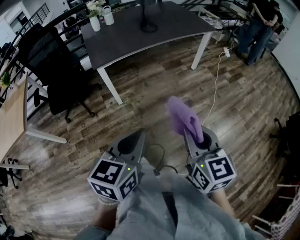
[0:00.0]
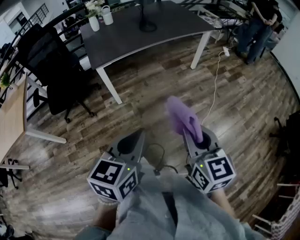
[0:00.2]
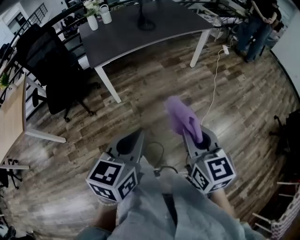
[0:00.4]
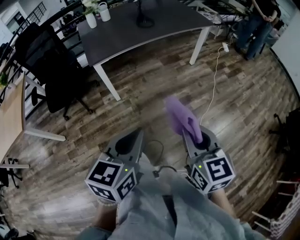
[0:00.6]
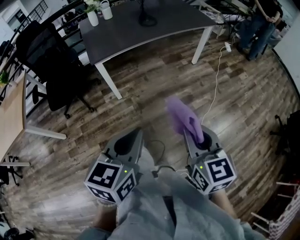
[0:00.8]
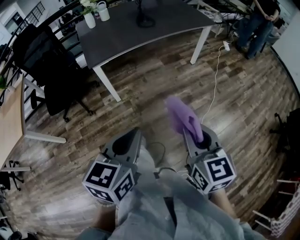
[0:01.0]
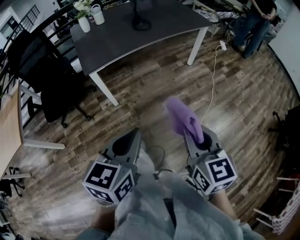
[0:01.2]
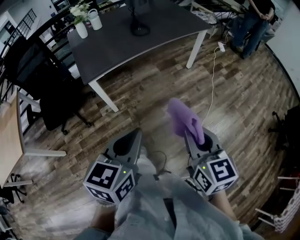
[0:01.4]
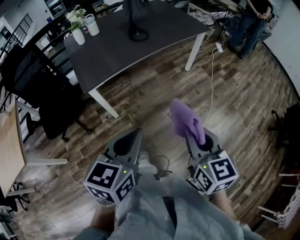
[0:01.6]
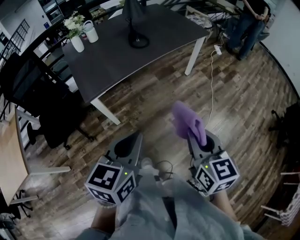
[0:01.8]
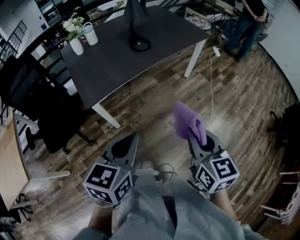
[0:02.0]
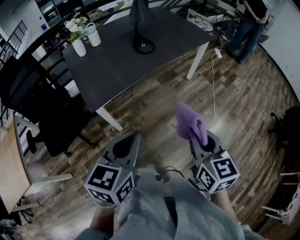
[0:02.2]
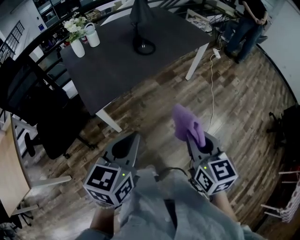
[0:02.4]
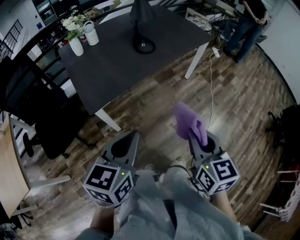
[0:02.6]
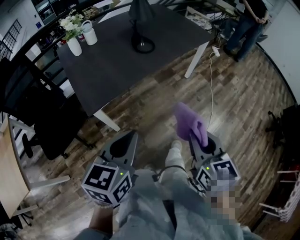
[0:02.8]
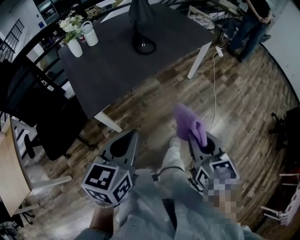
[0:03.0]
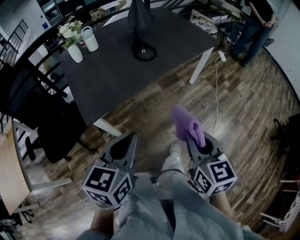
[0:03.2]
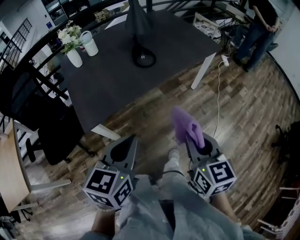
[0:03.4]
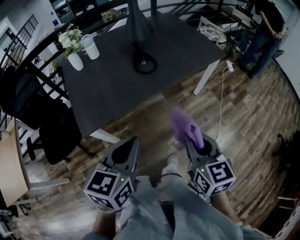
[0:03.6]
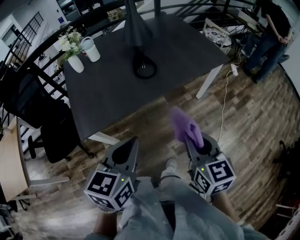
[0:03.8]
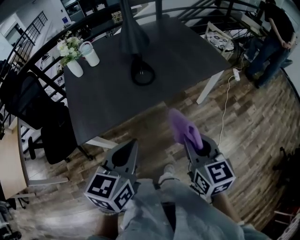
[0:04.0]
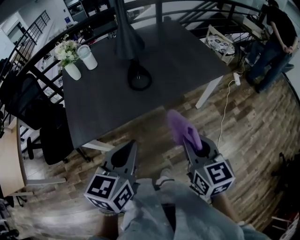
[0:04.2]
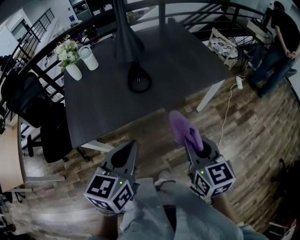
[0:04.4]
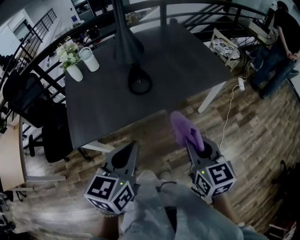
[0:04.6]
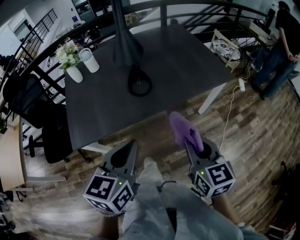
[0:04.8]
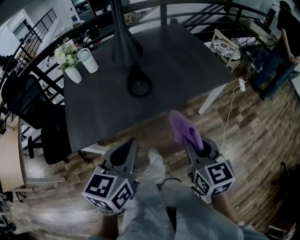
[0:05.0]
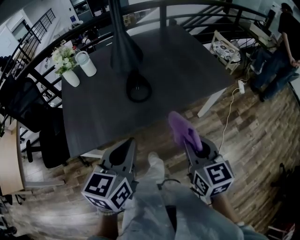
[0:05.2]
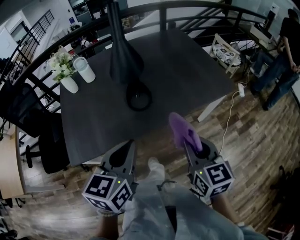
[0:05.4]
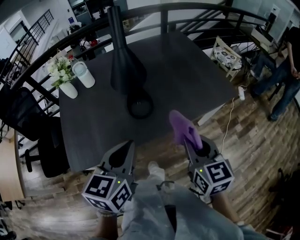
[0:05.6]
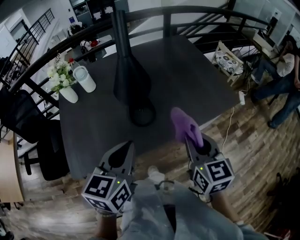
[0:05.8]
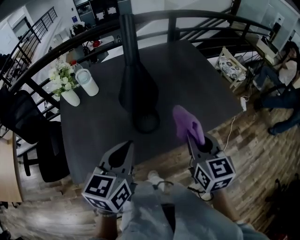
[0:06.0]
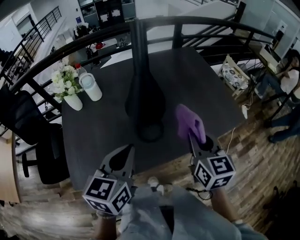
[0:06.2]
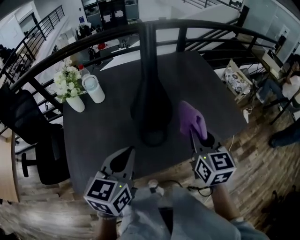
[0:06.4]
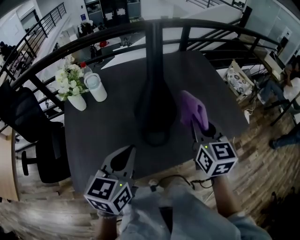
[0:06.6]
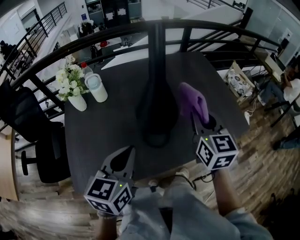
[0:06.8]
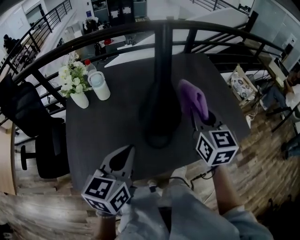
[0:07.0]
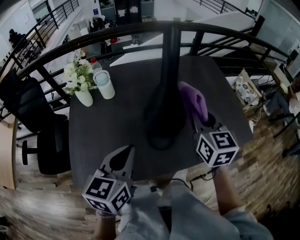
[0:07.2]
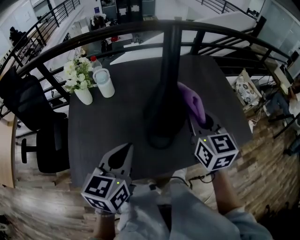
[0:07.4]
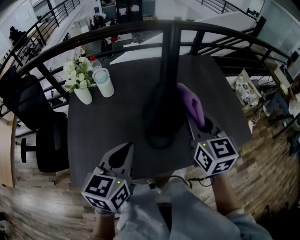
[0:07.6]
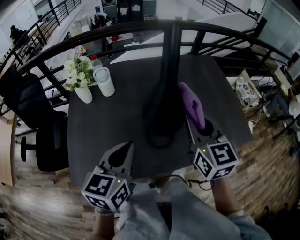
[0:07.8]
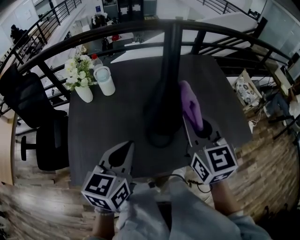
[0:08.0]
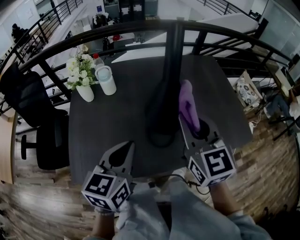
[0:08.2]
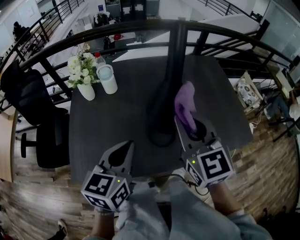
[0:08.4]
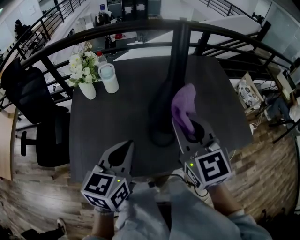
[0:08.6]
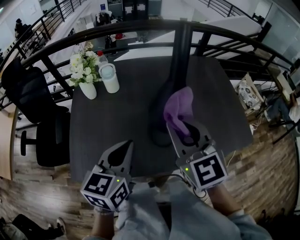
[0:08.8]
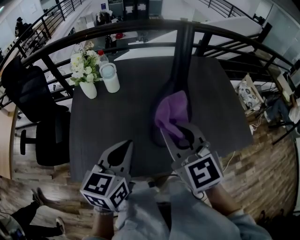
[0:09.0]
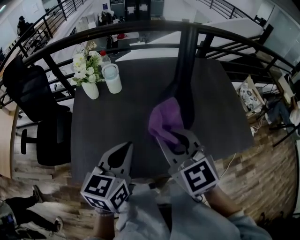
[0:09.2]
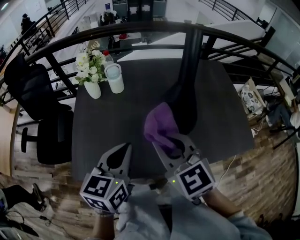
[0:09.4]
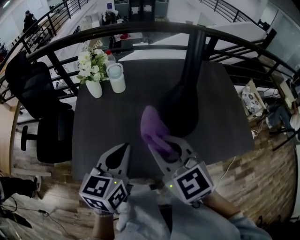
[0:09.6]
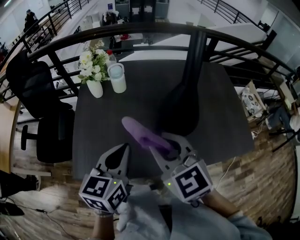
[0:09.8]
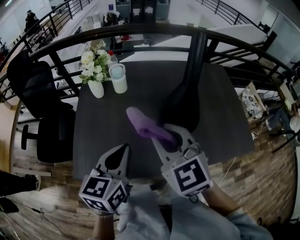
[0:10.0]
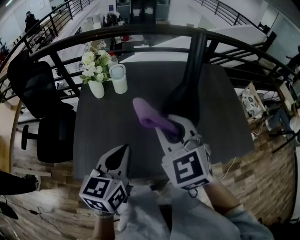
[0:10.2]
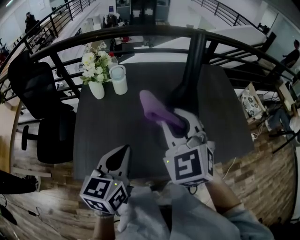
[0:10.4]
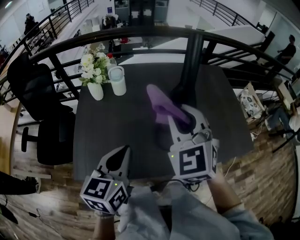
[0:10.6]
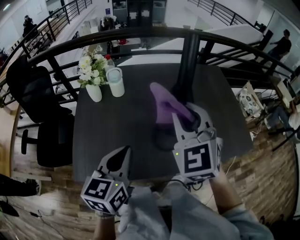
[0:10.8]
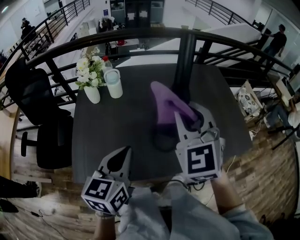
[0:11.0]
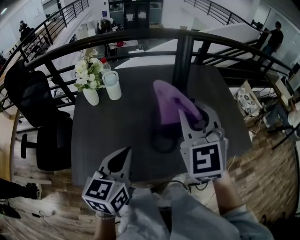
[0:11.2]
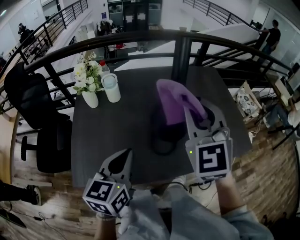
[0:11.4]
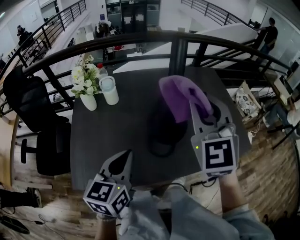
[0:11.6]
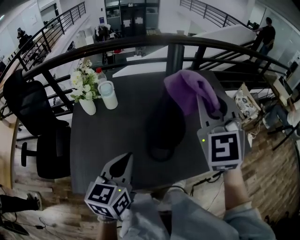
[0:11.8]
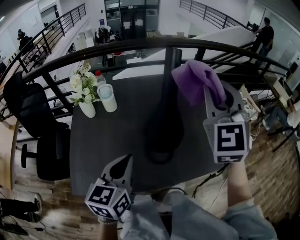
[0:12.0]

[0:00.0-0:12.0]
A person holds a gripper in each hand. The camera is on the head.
0:00.0 to 0:01.6: Both grippers move forward, approximately 15 cm.
0:01.6 to 0:03.0: Both grippers move forward and to the left, some 15 cm.
0:03.0 to 0:04.4: The grippers both shift forward and to the right by about 30 cm.
0:04.4 to 0:06.0: Both grippers move forward, approximately 25 cm.
0:06.0 to 0:07.6: The right gripper heads forward and to the left, covering roughly 15 cm. The left gripper shifts approximately 10 cm to the left and forward.
0:07.6 to 0:09.0: The right gripper moves to the left and backward, approximately 15 cm, and turns by approximately 20 degrees.
0:09.0 to 0:10.4: The right gripper swivels some 20 degrees.
0:10.4 to 0:12.0: The right gripper moves to the right, upward and forward, some 20 cm, and rotates approximately 30 degrees. The left gripper is displaced to the right by roughly 5 cm.

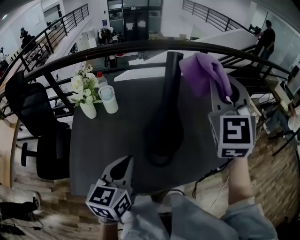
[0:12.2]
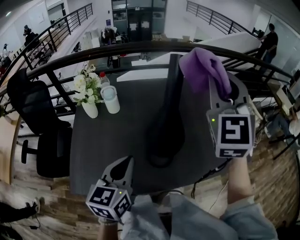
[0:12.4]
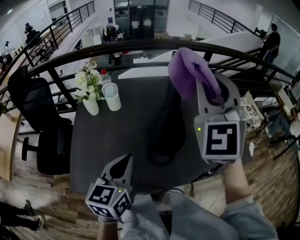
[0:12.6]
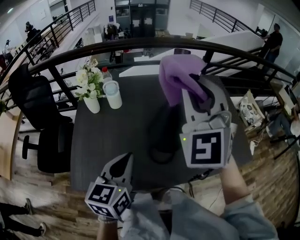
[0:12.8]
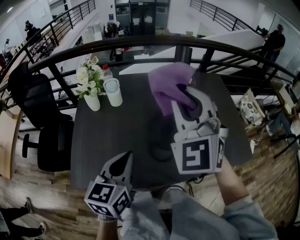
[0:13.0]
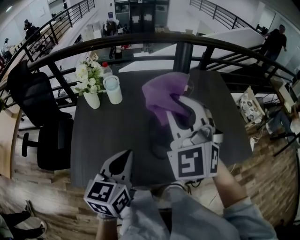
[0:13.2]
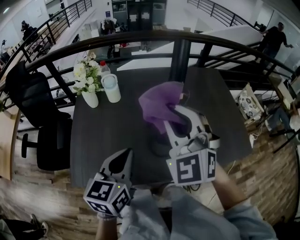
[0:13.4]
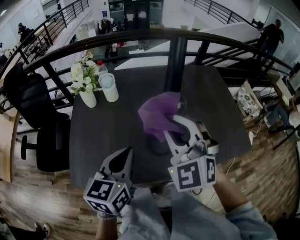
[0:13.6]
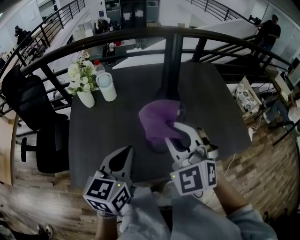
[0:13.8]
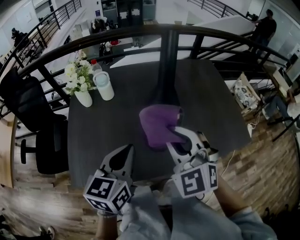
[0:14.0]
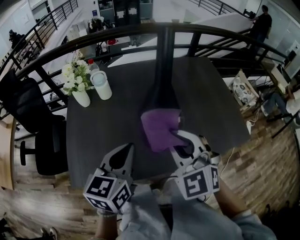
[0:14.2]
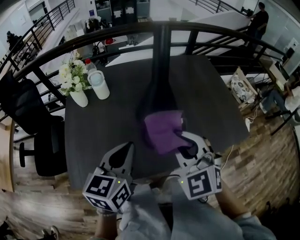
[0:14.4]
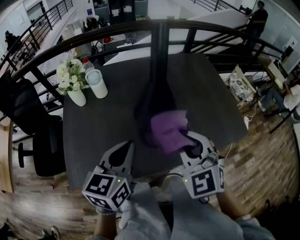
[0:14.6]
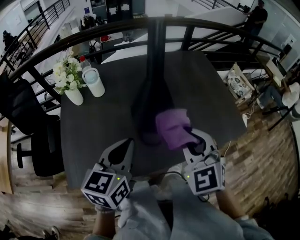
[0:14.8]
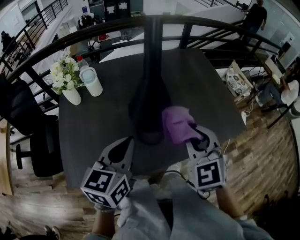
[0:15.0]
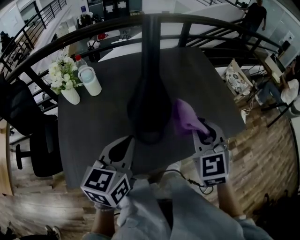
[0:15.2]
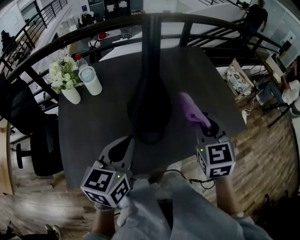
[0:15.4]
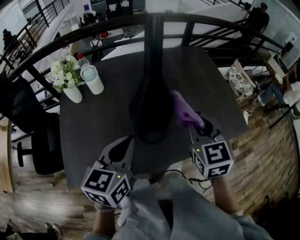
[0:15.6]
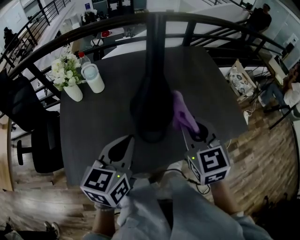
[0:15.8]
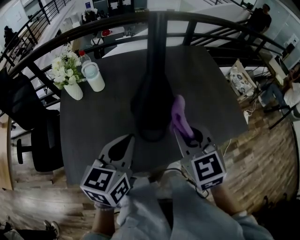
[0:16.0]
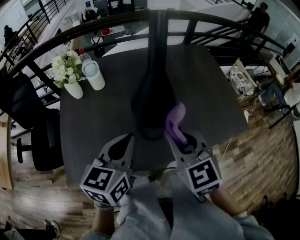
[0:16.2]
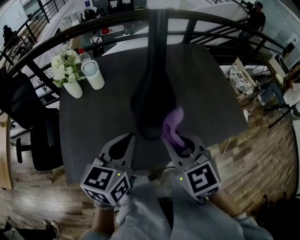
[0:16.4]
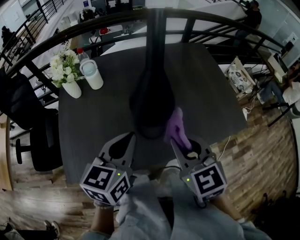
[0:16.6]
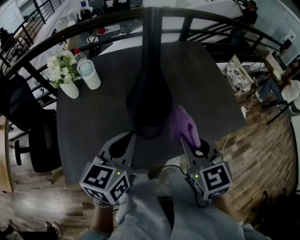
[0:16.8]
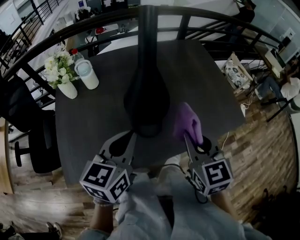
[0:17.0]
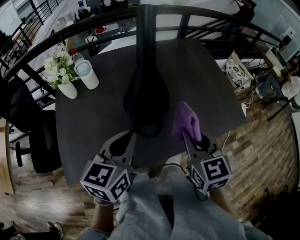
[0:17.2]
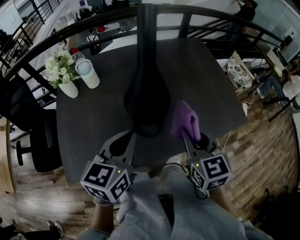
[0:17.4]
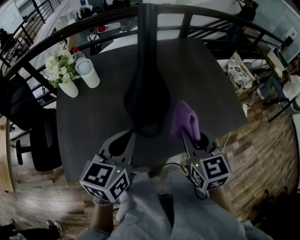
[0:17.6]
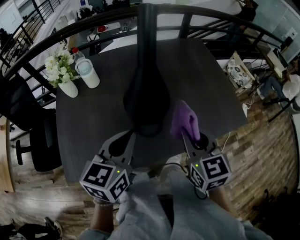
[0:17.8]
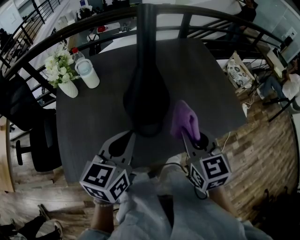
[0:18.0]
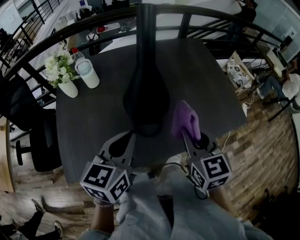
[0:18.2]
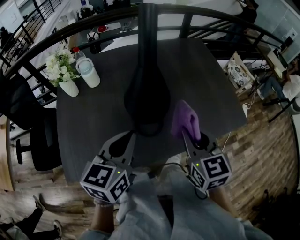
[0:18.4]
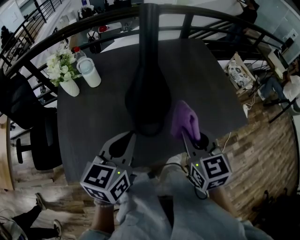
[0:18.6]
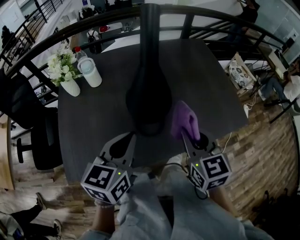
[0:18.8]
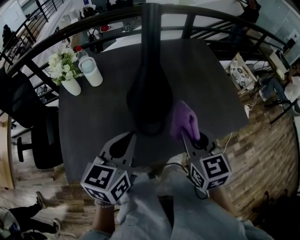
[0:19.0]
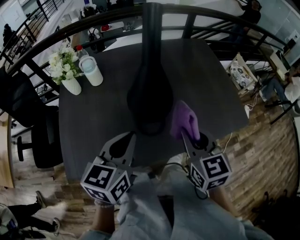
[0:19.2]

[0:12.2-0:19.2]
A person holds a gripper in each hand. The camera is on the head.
0:12.2 to 0:13.6: The right gripper shifts approximately 20 cm downward, to the left and backward, and rotates about 30 degrees.
0:13.6 to 0:15.0: The left gripper ends up some 5 cm from where it was; the right gripper heads to the right and downward, covering about 15 cm, and turns by about 30 degrees.
0:15.0 to 0:16.4: The right gripper is displaced to the left by approximately 5 cm.
0:16.4 to 0:17.8: The right gripper is displaced to the right by roughly 10 cm.
0:17.8 to 0:19.2: The two grippers keep their place.

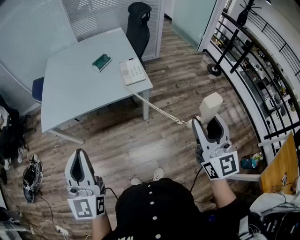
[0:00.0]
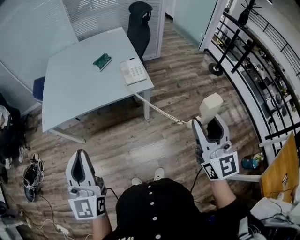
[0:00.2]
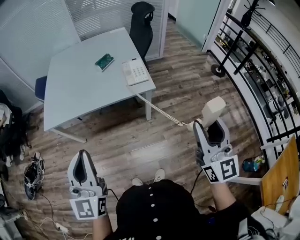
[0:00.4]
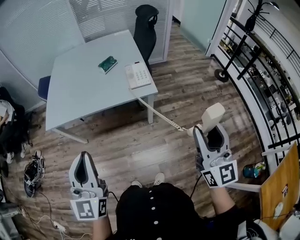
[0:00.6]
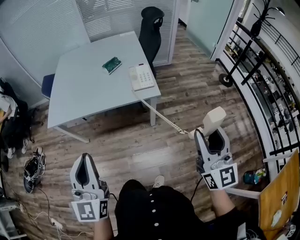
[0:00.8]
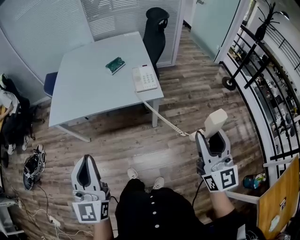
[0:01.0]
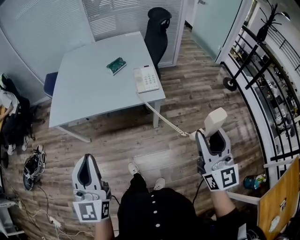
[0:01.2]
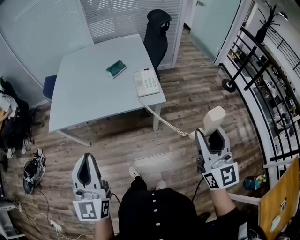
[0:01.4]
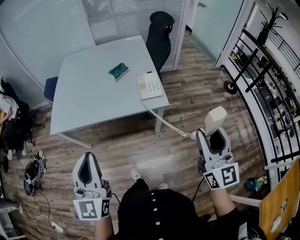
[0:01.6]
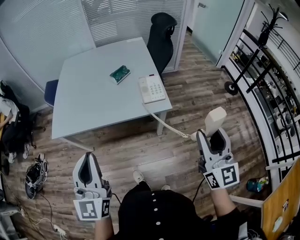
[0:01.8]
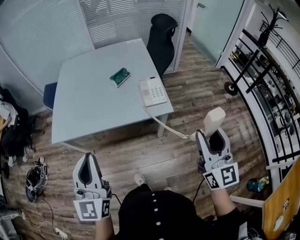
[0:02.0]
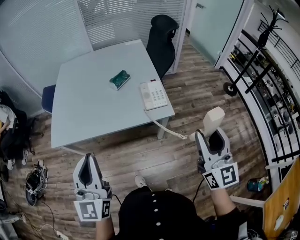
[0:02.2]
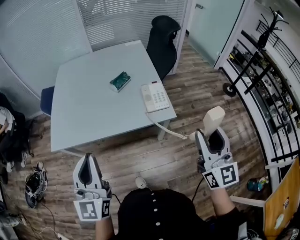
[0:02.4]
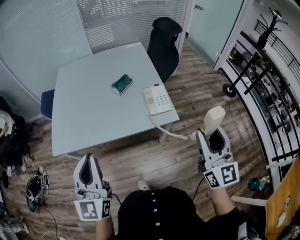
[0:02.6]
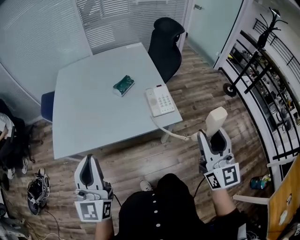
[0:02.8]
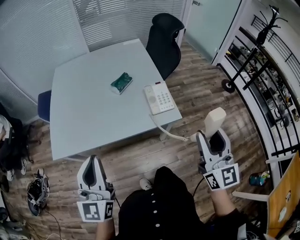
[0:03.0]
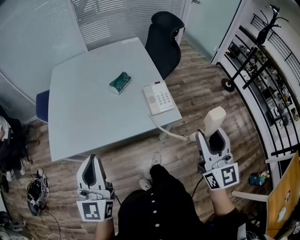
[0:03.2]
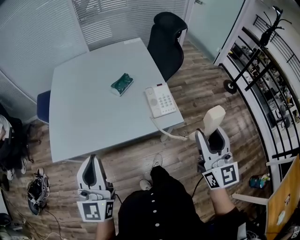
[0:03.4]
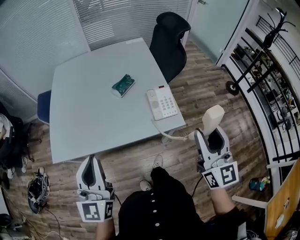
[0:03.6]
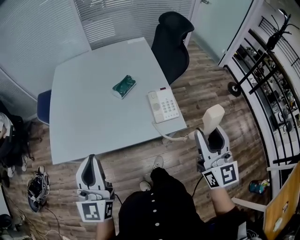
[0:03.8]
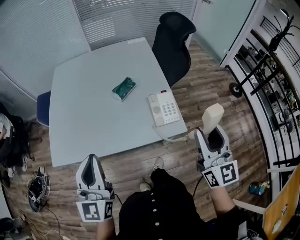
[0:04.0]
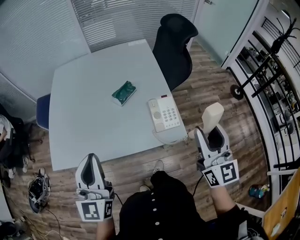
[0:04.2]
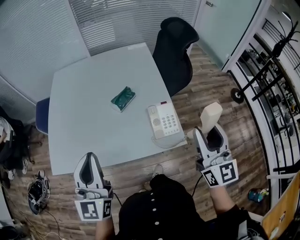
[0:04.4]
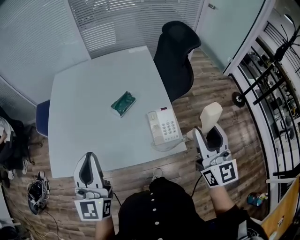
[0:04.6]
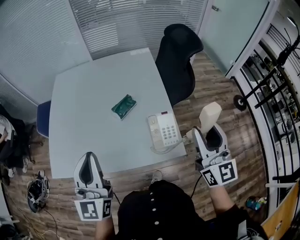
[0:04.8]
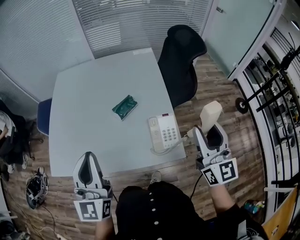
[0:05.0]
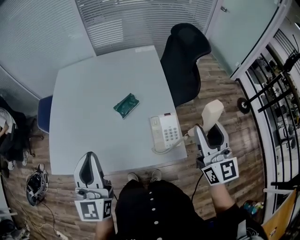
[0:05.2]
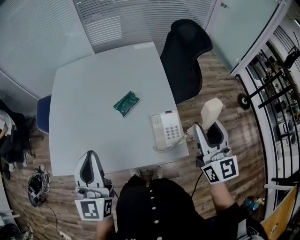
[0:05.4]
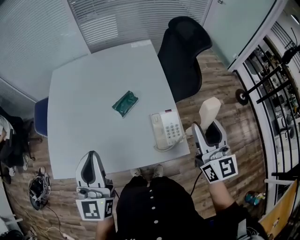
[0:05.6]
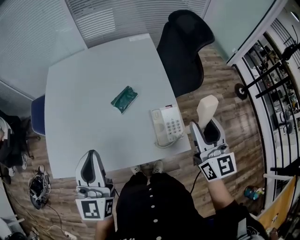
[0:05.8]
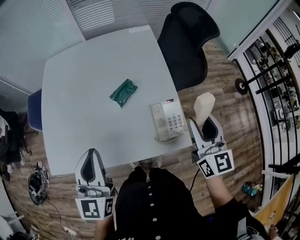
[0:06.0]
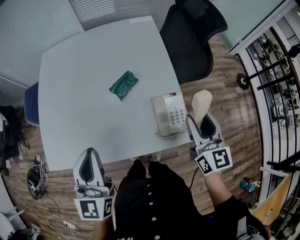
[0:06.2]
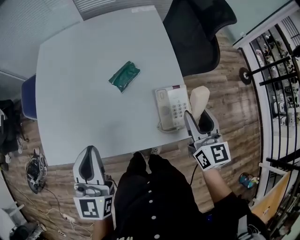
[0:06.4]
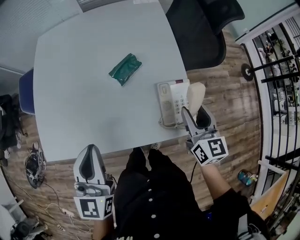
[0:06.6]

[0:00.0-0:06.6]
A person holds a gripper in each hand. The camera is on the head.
0:00.0 to 0:01.6: The grippers both shift forward by about 10 cm.
0:01.6 to 0:03.2: Both grippers travel together forward and to the left, about 15 cm.
0:03.2 to 0:05.0: Both grippers travel together forward, some 20 cm.
0:05.0 to 0:06.6: The left gripper is displaced downward by approximately 10 cm, while the right gripper goes some 20 cm downward, and changes its angle by approximately 30 degrees.
